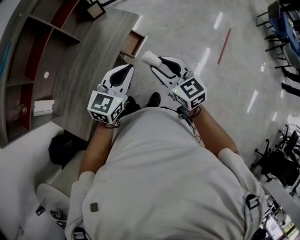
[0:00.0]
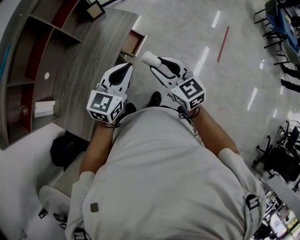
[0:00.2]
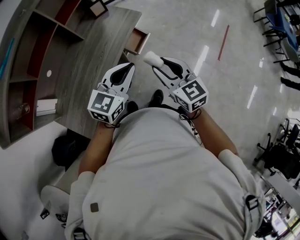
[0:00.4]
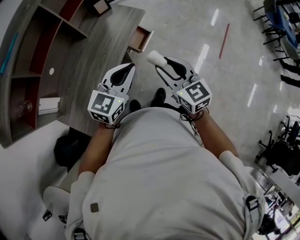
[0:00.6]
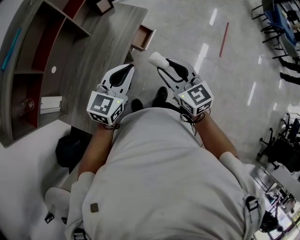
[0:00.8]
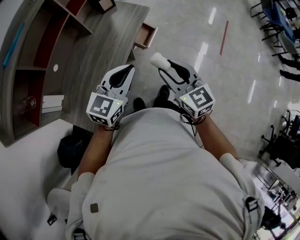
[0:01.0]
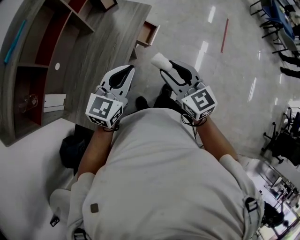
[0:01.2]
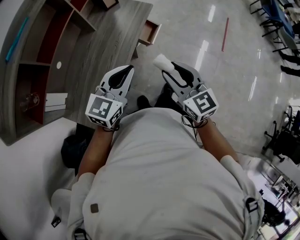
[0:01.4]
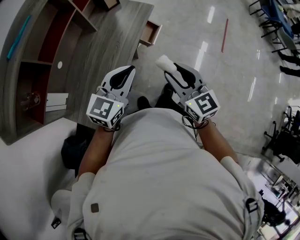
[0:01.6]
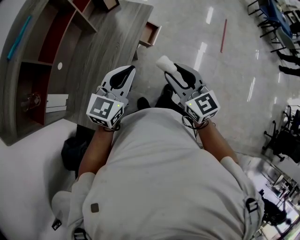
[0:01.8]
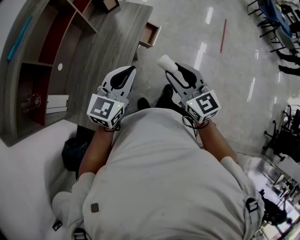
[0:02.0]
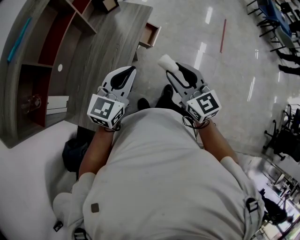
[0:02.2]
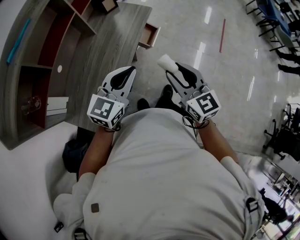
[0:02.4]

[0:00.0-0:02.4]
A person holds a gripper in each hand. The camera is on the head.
0:00.0 to 0:01.2: The two grippers go some 20 cm to the left and backward.
0:01.2 to 0:02.4: There are only small adjustments of the grippers.

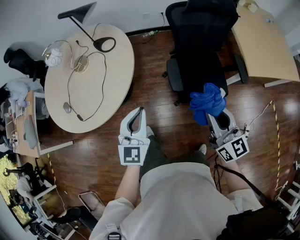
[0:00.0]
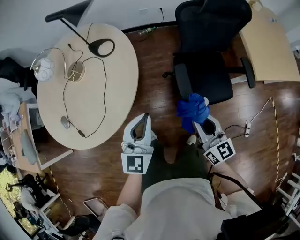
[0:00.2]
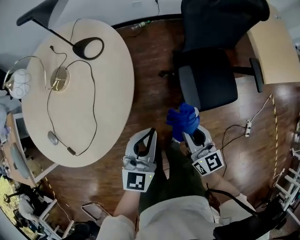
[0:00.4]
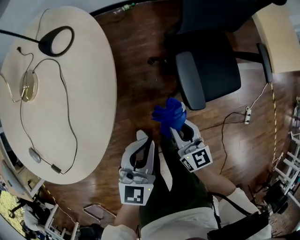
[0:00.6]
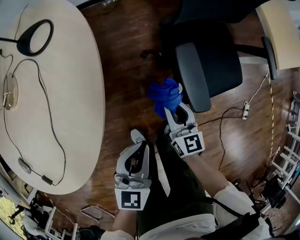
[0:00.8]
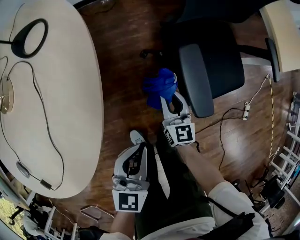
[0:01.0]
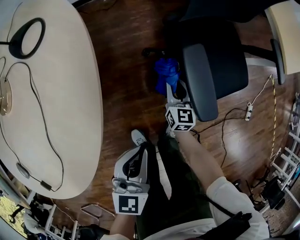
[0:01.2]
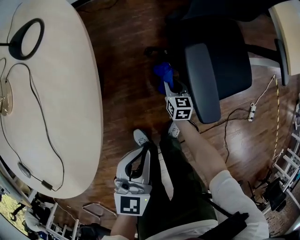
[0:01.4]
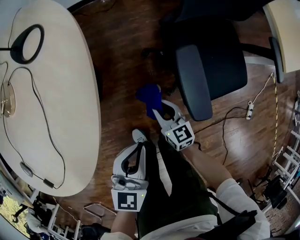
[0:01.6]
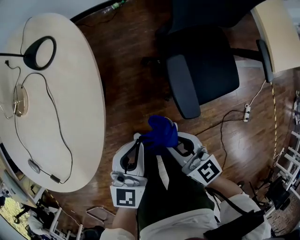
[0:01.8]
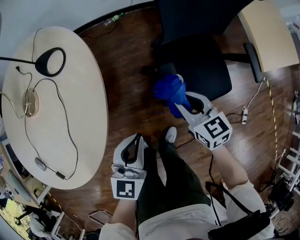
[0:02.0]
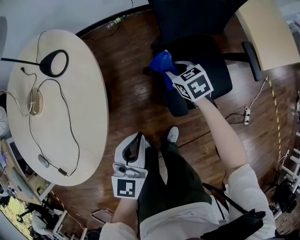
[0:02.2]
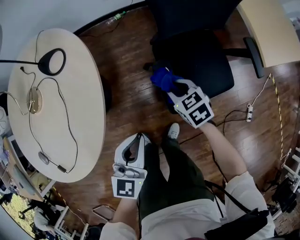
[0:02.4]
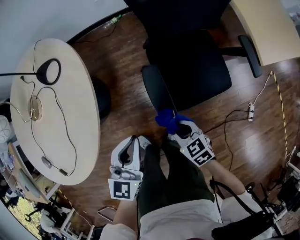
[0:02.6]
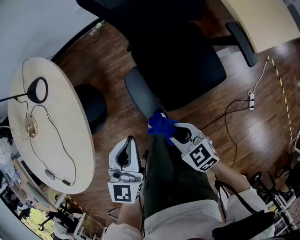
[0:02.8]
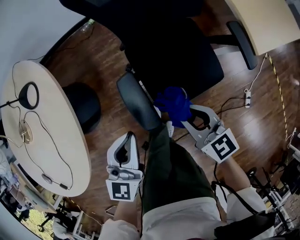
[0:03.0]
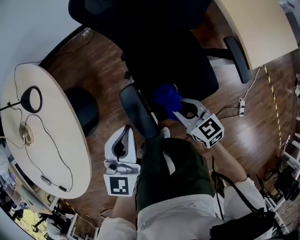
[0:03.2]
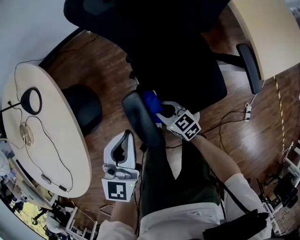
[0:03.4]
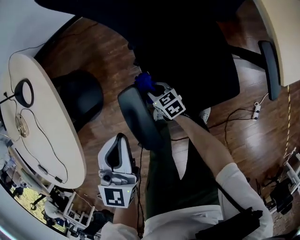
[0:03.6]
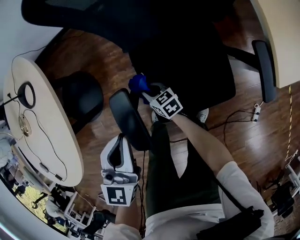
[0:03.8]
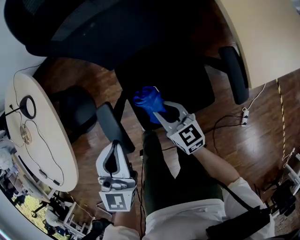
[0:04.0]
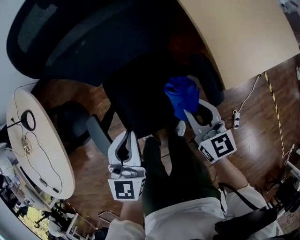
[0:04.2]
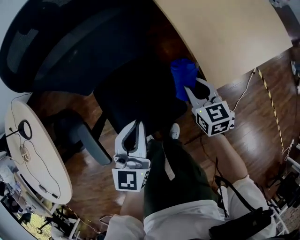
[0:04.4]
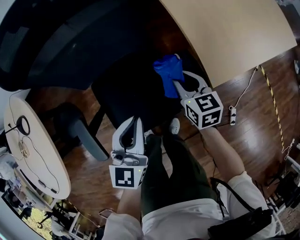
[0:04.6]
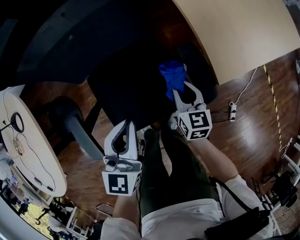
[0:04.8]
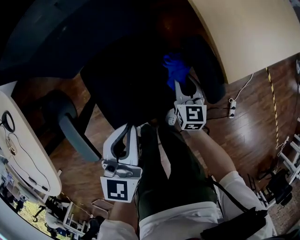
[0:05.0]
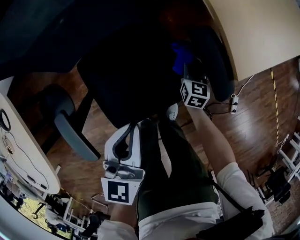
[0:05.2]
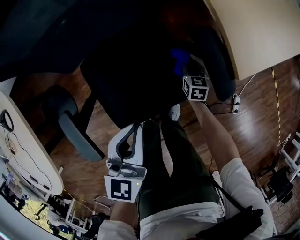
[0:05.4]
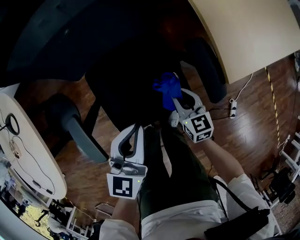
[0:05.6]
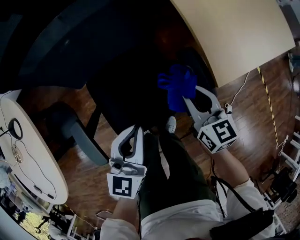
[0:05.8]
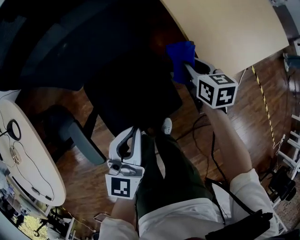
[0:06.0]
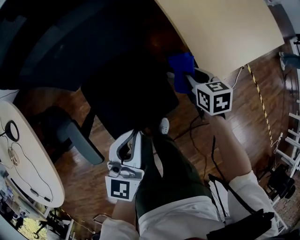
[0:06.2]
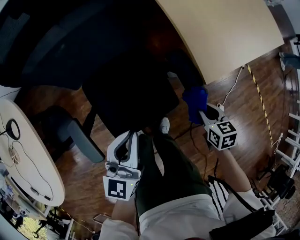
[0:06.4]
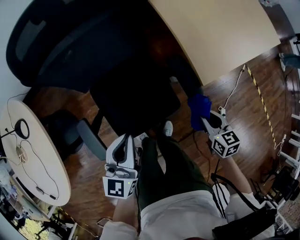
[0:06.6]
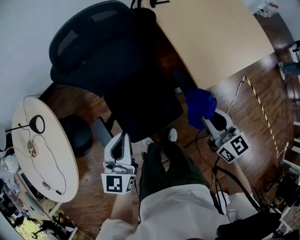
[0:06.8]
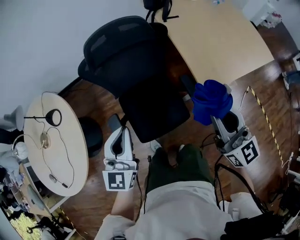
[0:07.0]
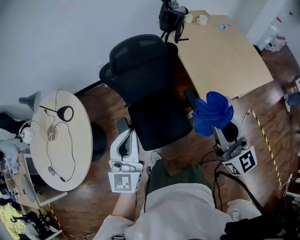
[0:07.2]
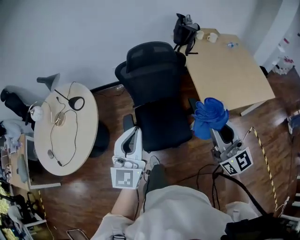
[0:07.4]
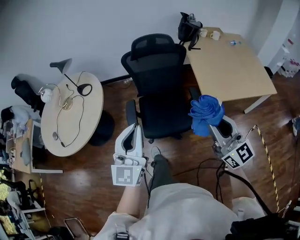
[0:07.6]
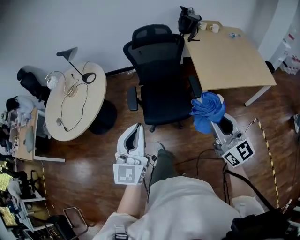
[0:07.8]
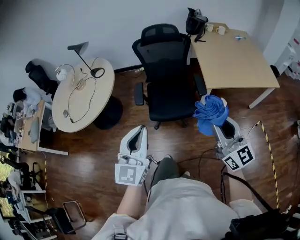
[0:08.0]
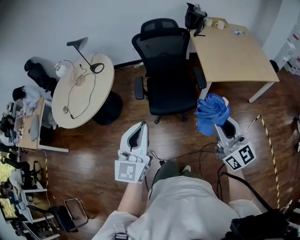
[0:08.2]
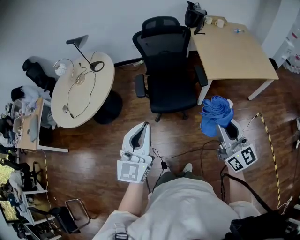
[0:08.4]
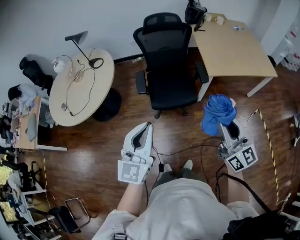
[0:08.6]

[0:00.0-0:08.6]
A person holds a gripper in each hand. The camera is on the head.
0:00.0 to 0:01.4: The left gripper is displaced downward by some 35 cm, and rotates some 30 degrees, while the right gripper moves downward, roughly 60 cm, and tips its fingers downward by some 30 degrees.
0:01.4 to 0:02.8: The left gripper heads to the right, upward and forward, covering roughly 20 cm, while the right gripper shifts roughly 35 cm upward and backward, and turns by roughly 30 degrees.
0:02.8 to 0:04.4: The left gripper travels downward and back again, about 5 cm each way. The right gripper goes up and down, approximately 35 cm each way, reversing 3 times, and changes its angle by approximately 30 degrees.
0:04.4 to 0:05.8: The right gripper moves approximately 30 cm downward and comes back.
0:05.8 to 0:07.2: Both grippers travel together upward, roughly 35 cm. The left gripper turns by some 30 degrees. Meanwhile the right gripper angles its fingers upward, by about 30 degrees.
0:07.2 to 0:08.6: Both grippers move backward, about 35 cm.

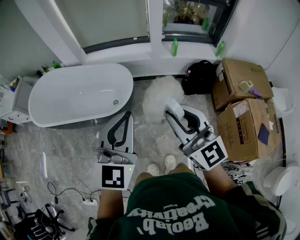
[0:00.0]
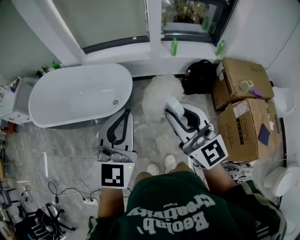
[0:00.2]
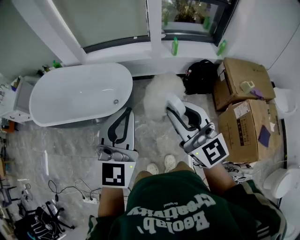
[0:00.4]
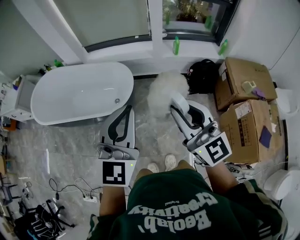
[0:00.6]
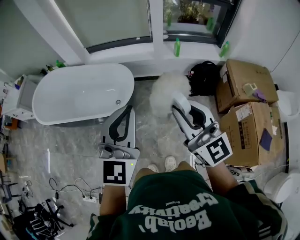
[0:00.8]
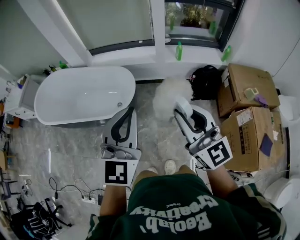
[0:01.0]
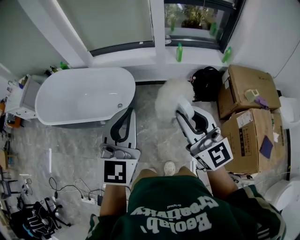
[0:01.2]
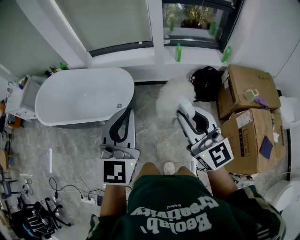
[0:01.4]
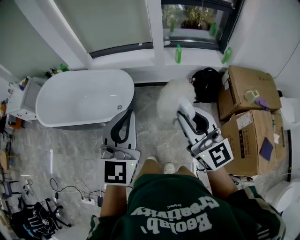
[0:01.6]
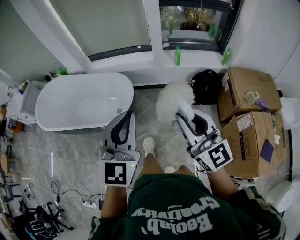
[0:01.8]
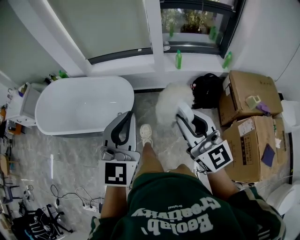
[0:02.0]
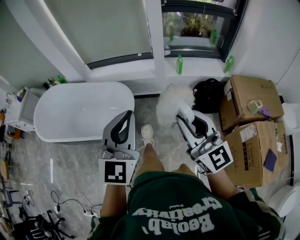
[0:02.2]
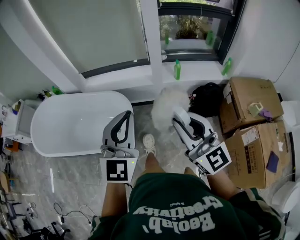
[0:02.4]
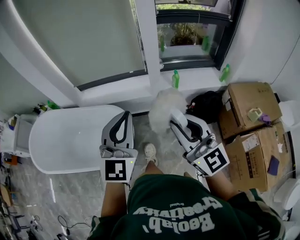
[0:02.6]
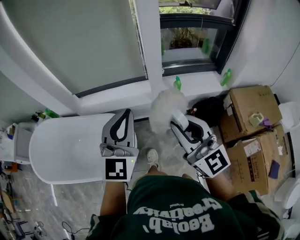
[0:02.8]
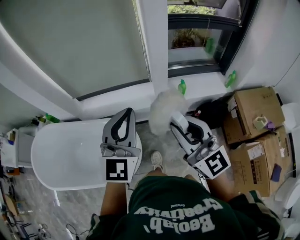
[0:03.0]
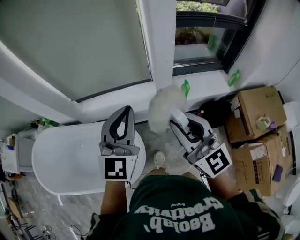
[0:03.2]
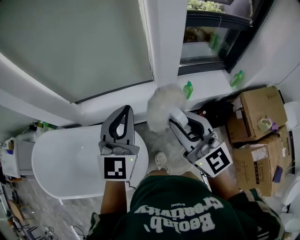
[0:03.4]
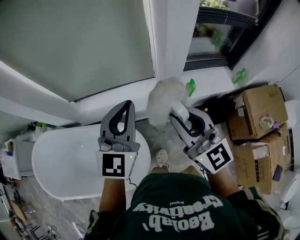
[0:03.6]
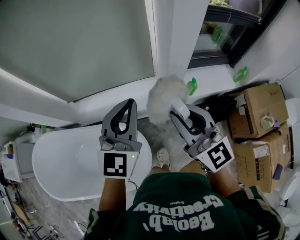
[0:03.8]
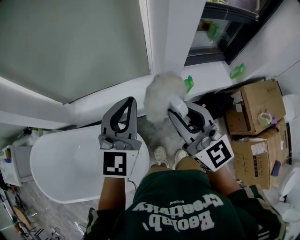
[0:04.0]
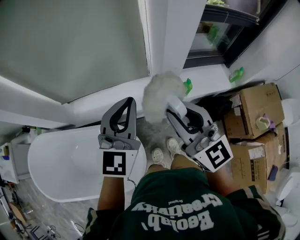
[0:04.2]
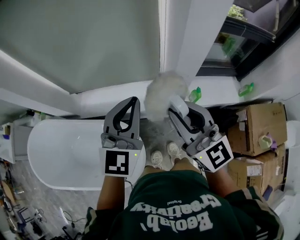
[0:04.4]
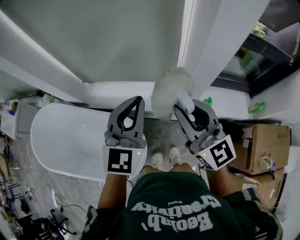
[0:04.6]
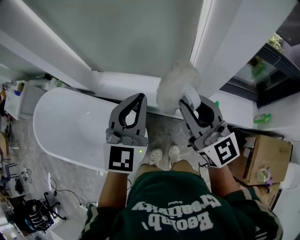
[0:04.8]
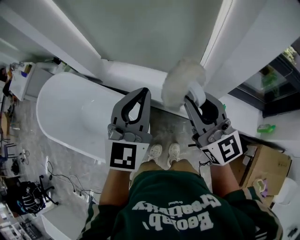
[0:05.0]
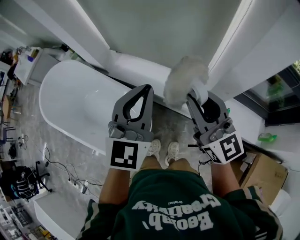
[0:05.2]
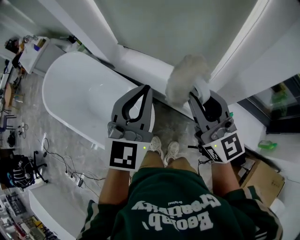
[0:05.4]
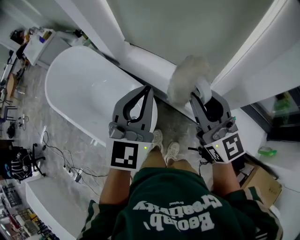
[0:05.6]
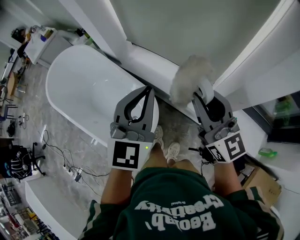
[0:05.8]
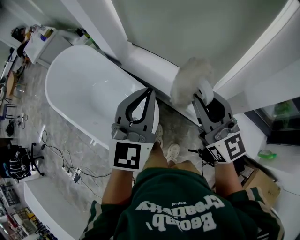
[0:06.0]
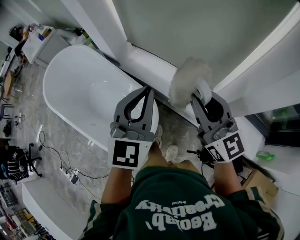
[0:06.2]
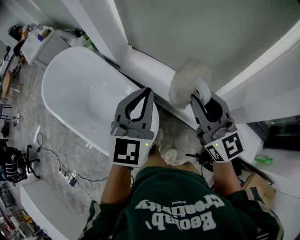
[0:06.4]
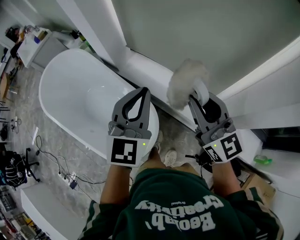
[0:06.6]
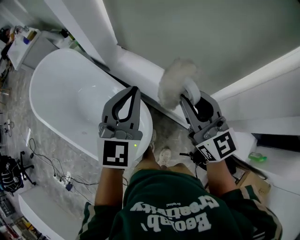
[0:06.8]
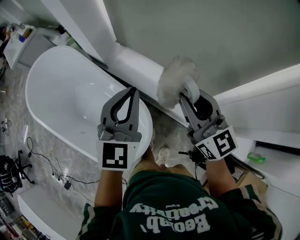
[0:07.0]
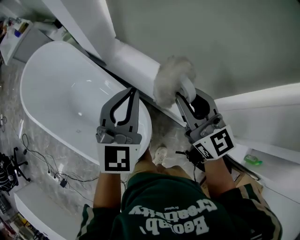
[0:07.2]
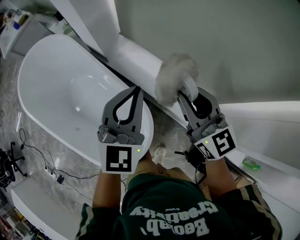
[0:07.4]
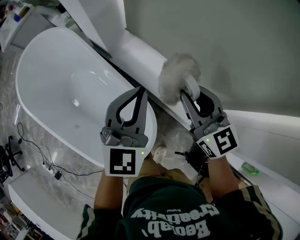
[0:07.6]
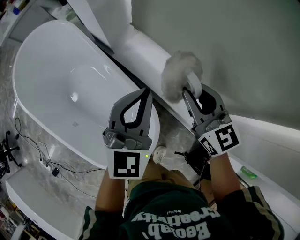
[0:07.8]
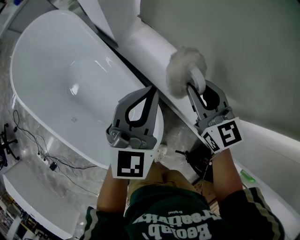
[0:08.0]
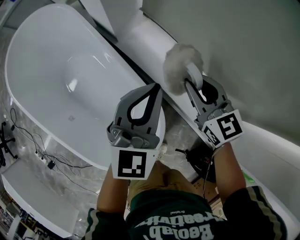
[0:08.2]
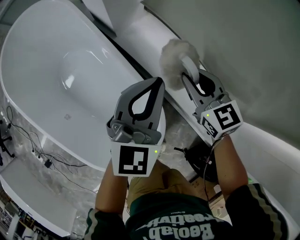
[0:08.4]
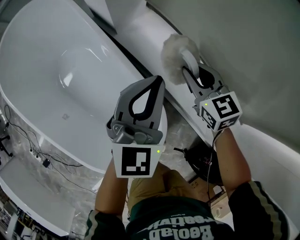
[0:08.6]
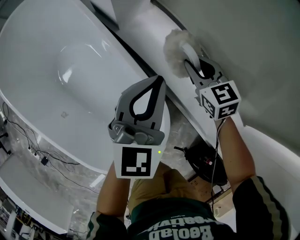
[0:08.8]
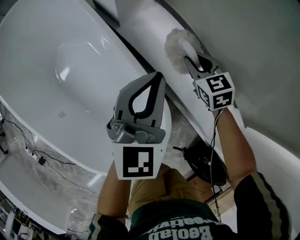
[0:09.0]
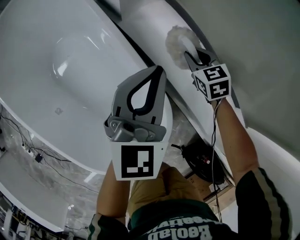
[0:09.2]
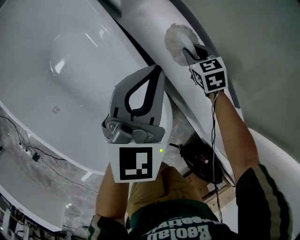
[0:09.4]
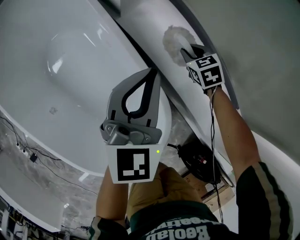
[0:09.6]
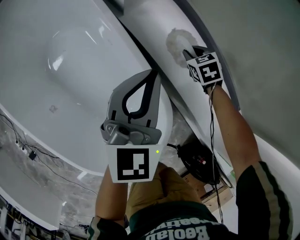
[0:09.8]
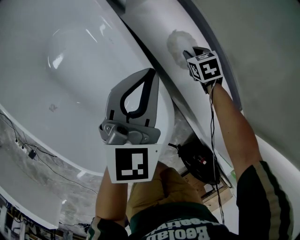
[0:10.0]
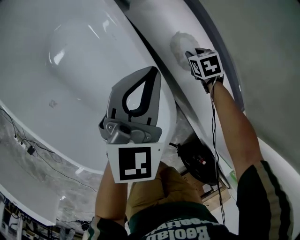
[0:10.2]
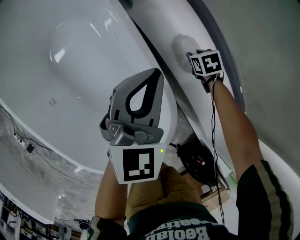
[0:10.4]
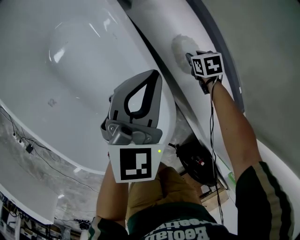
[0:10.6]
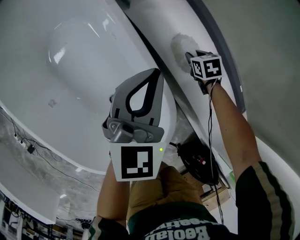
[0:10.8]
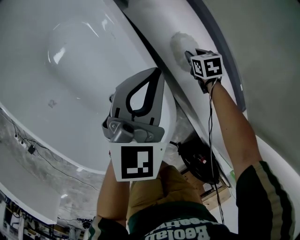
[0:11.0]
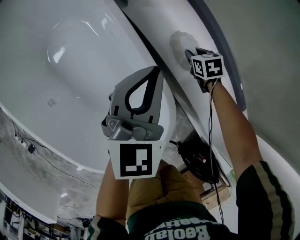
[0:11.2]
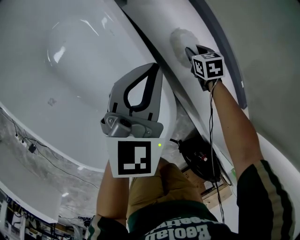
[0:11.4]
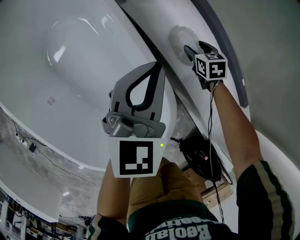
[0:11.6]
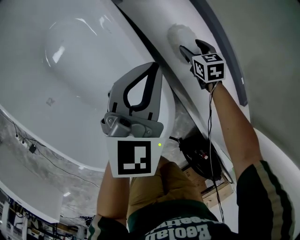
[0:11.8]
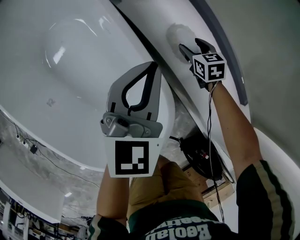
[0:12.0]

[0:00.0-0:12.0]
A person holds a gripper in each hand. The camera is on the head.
0:00.0 to 0:01.6: The grippers both shift to the right by roughly 10 cm.
0:01.6 to 0:03.0: Both grippers move forward, some 40 cm.
0:03.0 to 0:04.4: Both grippers travel together forward, roughly 20 cm.
0:04.4 to 0:06.0: The left gripper ends up some 10 cm from where it was, and changes its angle by roughly 40 degrees, while the right gripper shifts by some 10 cm, and turns by some 30 degrees.
0:06.0 to 0:07.6: The grippers both shift forward, downward and to the left by approximately 25 cm.
0:07.6 to 0:09.0: The right gripper heads downward and forward, covering some 35 cm, and tilts its fingers about 30 degrees downward. Meanwhile the left gripper is displaced downward and forward by roughly 20 cm.
0:09.0 to 0:10.4: The left gripper goes approximately 5 cm downward, while the right gripper is displaced downward by approximately 20 cm, and rotates some 30 degrees.
0:10.4 to 0:12.0: The right gripper turns by some 20 degrees, and opens up.
